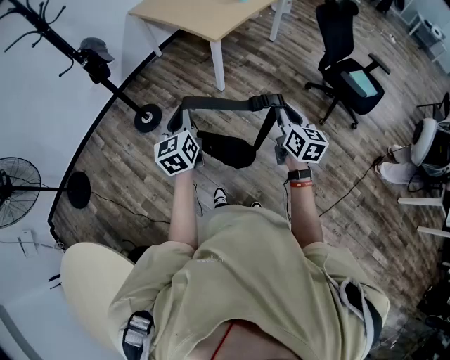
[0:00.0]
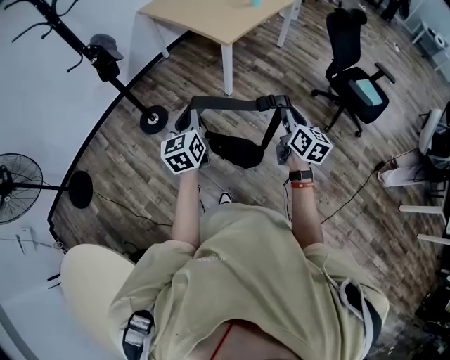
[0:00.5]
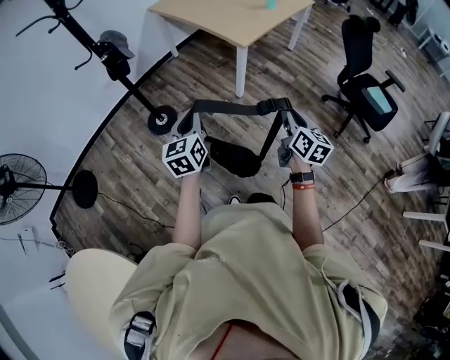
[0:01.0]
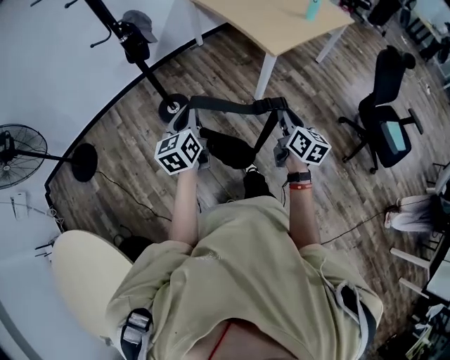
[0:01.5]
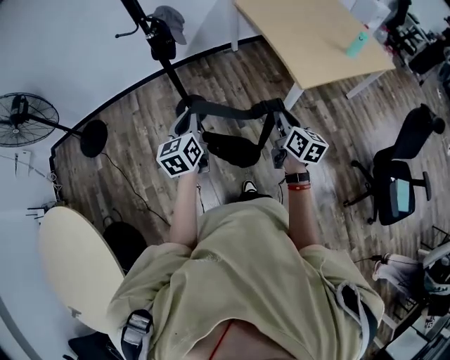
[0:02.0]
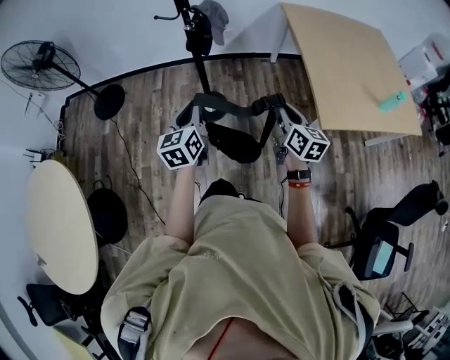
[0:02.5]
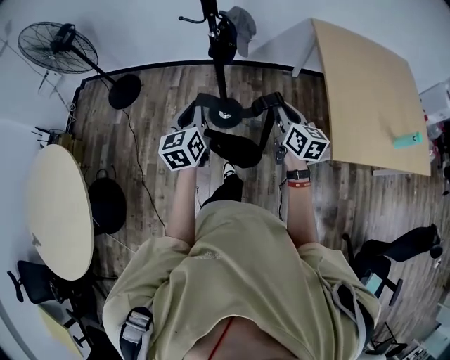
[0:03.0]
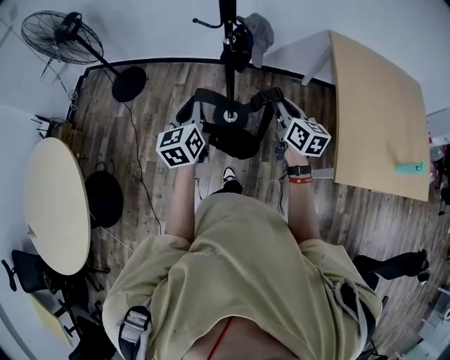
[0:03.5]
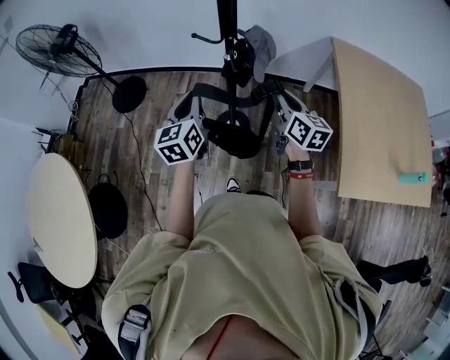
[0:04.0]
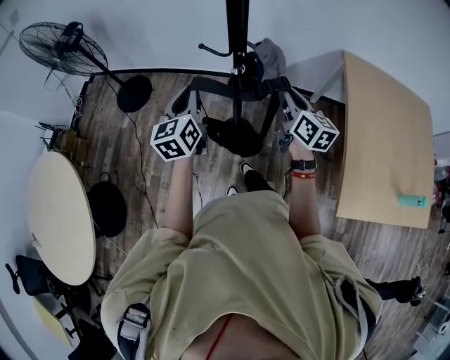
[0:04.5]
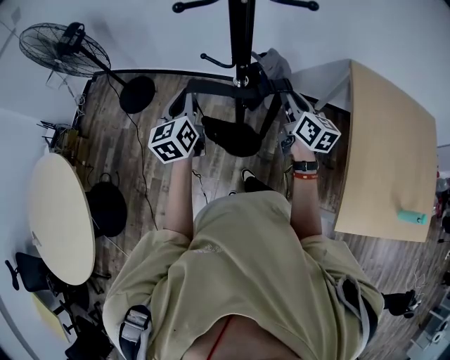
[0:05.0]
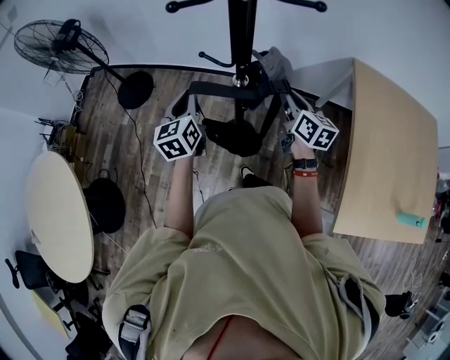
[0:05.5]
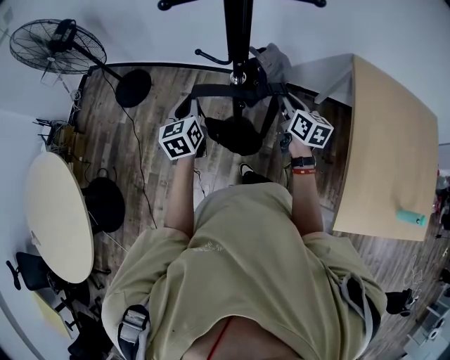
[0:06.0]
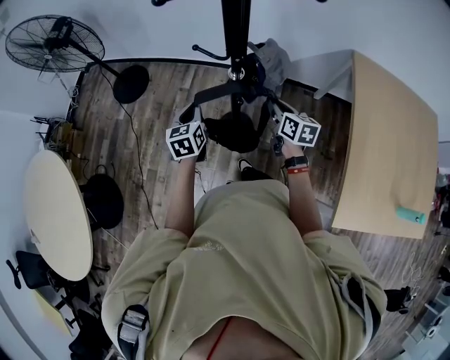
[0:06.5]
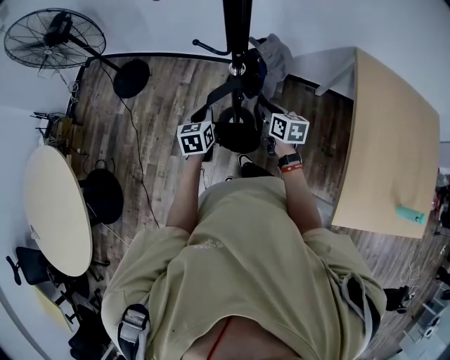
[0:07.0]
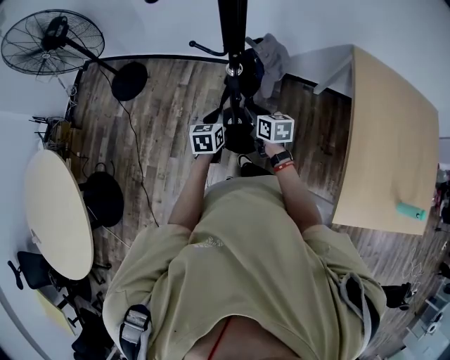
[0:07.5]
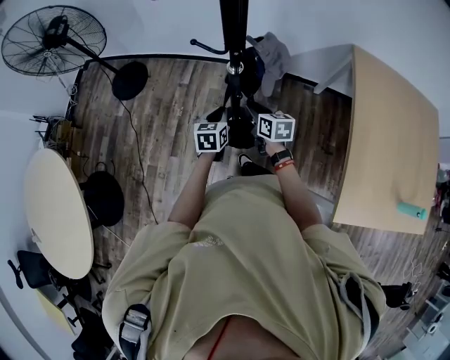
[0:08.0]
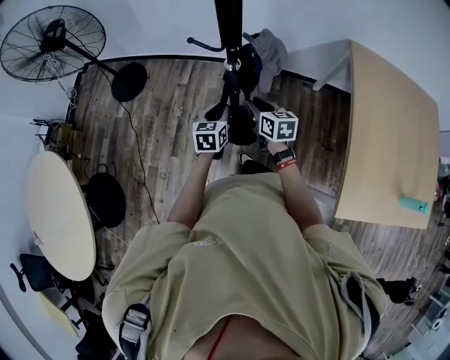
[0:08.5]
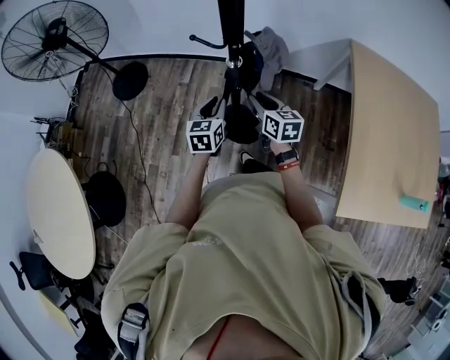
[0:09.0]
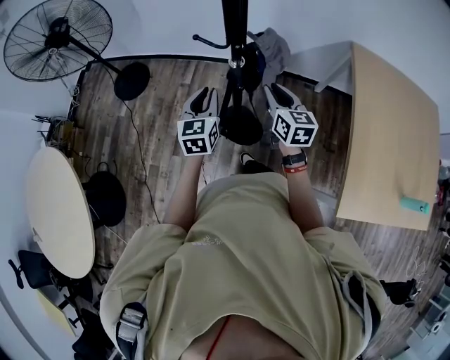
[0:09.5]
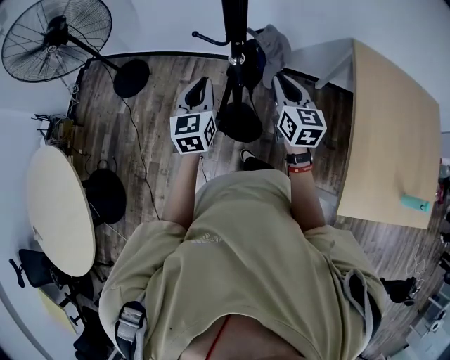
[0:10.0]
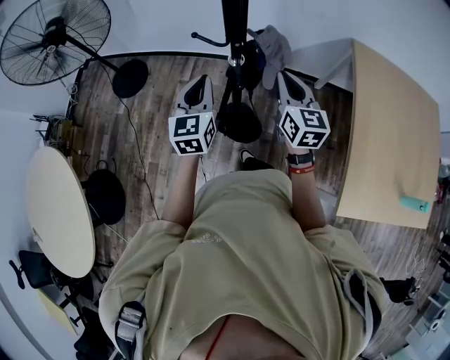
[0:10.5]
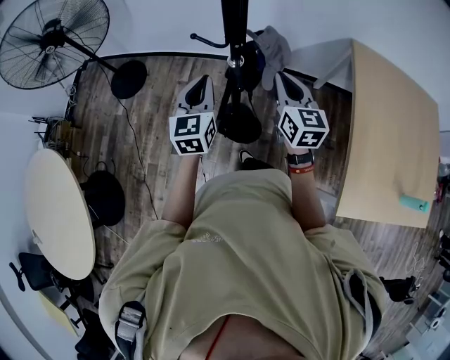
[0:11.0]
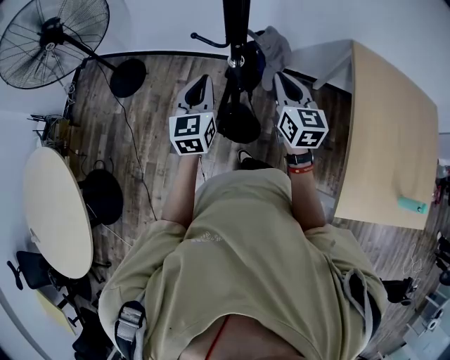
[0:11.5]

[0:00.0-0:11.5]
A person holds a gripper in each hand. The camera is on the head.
0:00.0 to 0:02.0: The left gripper shifts by about 35 cm, and rotates approximately 30 degrees; the right gripper shifts by approximately 50 cm, and swivels about 30 degrees.
0:02.0 to 0:04.0: The left gripper moves roughly 35 cm, and swivels some 30 degrees. Meanwhile the right gripper moves some 50 cm, and swivels some 30 degrees.
0:04.0 to 0:06.0: The grippers both shift forward and downward by approximately 20 cm.
0:06.0 to 0:07.5: The right gripper moves downward and to the left, roughly 15 cm. Meanwhile the left gripper goes about 15 cm downward and to the right, and rotates about 20 degrees.
0:07.5 to 0:09.5: Both grippers travel together upward, approximately 15 cm. The right gripper changes its angle by some 20 degrees. Meanwhile the left gripper swivels about 20 degrees.
0:09.5 to 0:11.5: The two grippers go some 5 cm upward. The right gripper closes.

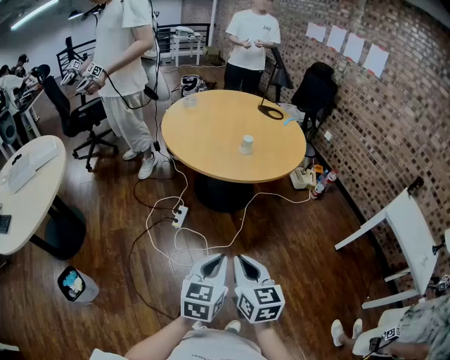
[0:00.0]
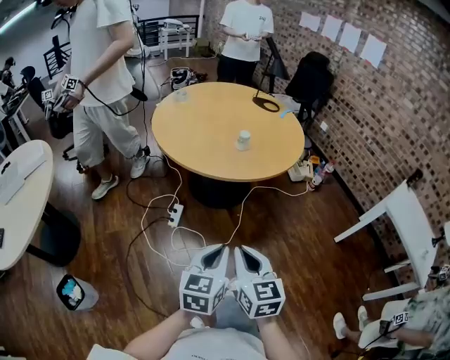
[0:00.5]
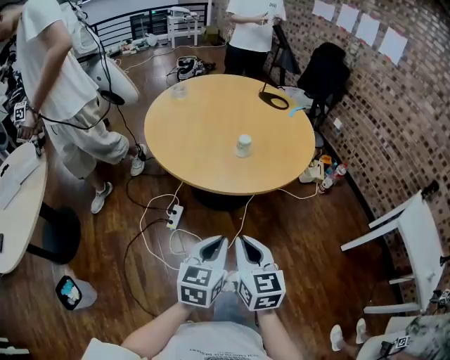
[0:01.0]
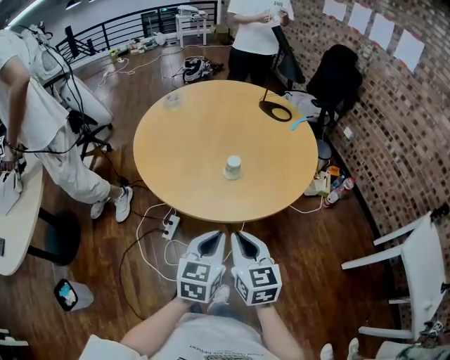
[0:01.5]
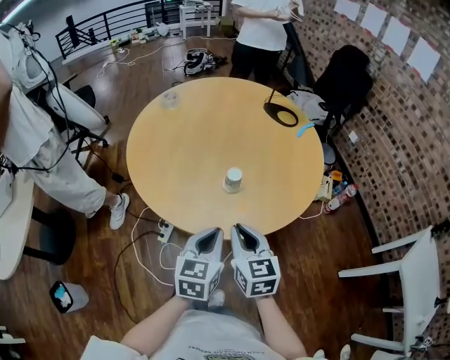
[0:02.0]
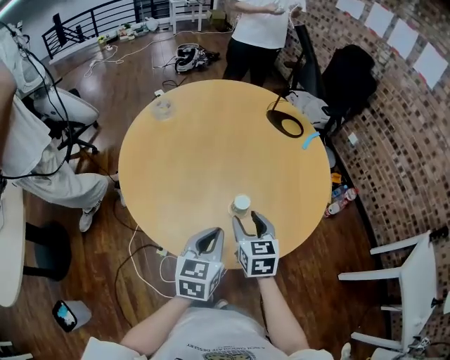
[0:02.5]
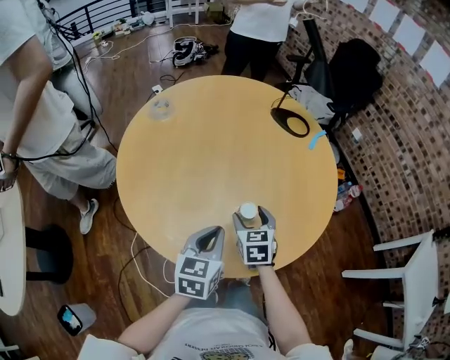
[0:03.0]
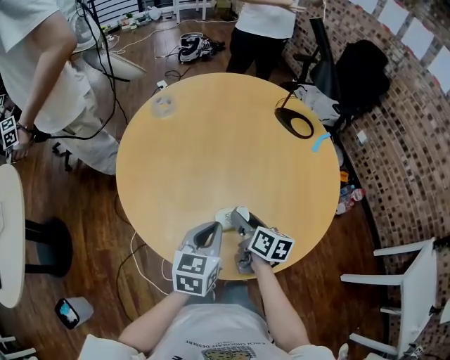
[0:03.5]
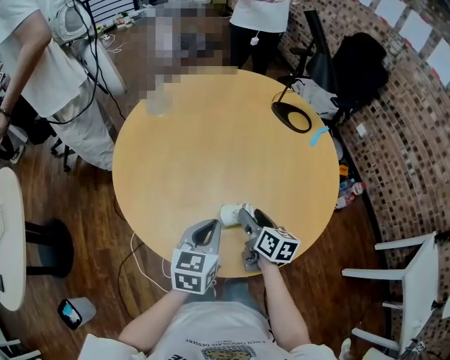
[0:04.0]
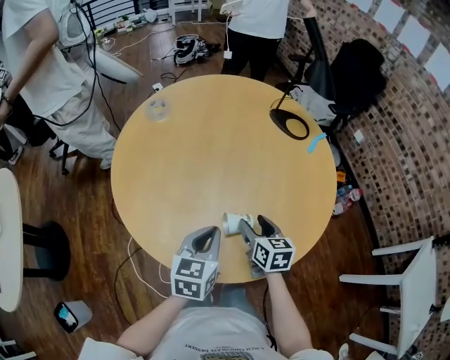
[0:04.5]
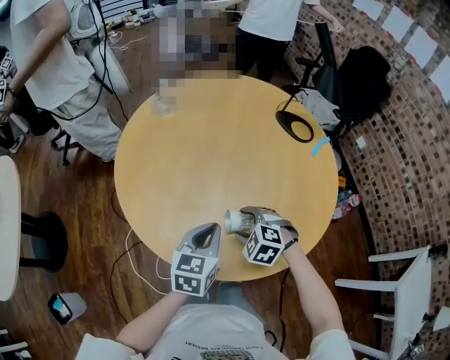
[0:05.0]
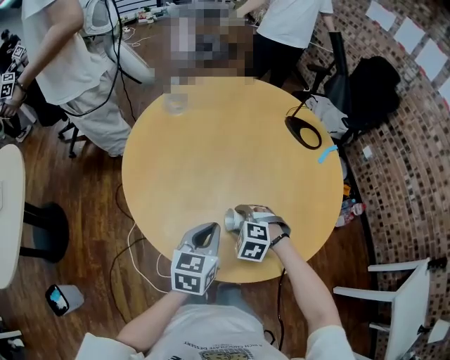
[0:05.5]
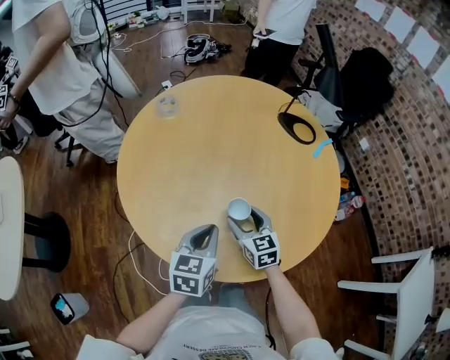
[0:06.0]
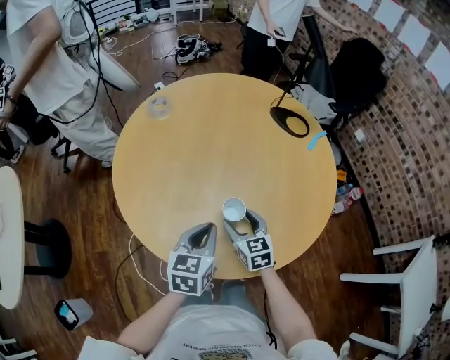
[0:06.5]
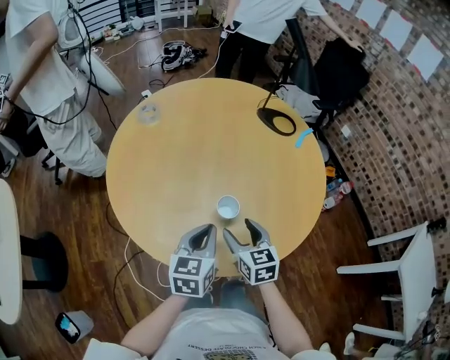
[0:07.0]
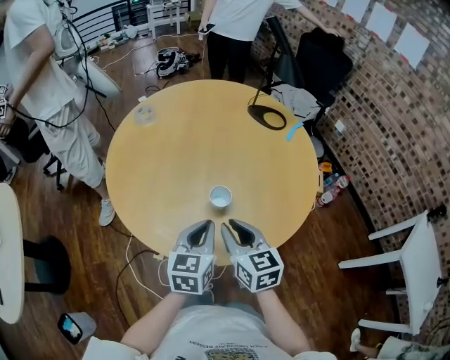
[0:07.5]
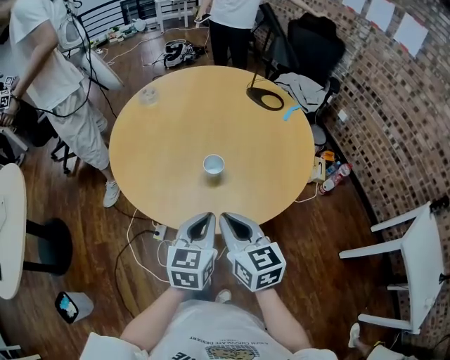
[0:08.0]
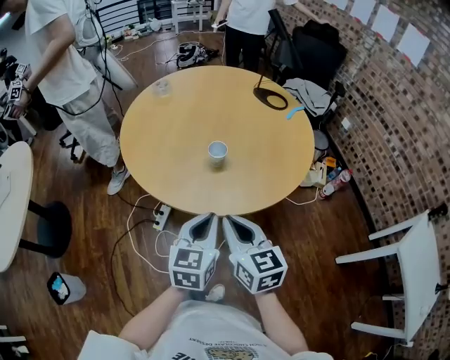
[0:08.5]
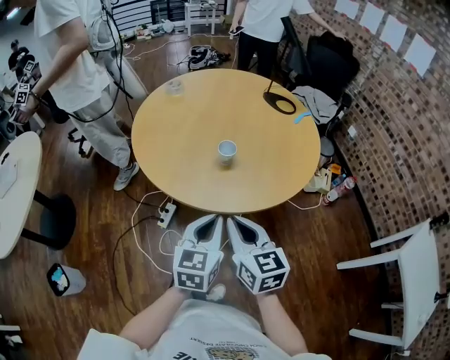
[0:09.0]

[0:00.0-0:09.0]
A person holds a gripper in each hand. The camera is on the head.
0:00.0 to 0:02.0: Both grippers are carried forward, roughly 50 cm.
0:02.0 to 0:04.5: The right gripper moves forward and downward, approximately 25 cm, and opens, while the left gripper is displaced forward by approximately 20 cm.
0:04.5 to 0:07.0: The right gripper travels backward by roughly 5 cm.
0:07.0 to 0:09.0: The left gripper moves backward, roughly 25 cm, while the right gripper is displaced backward and upward by approximately 30 cm, and closes.

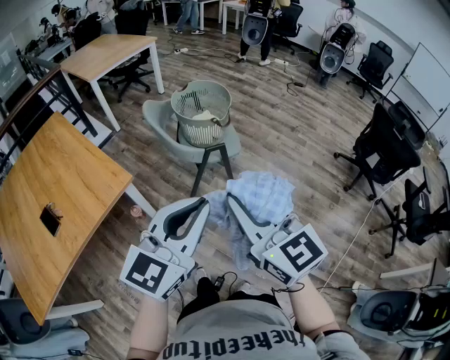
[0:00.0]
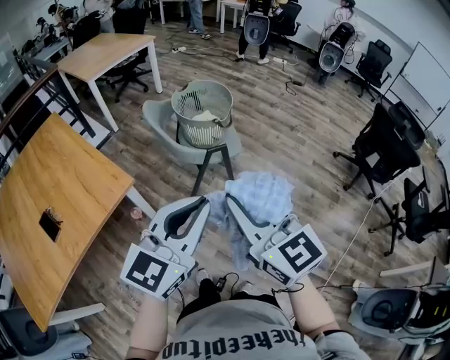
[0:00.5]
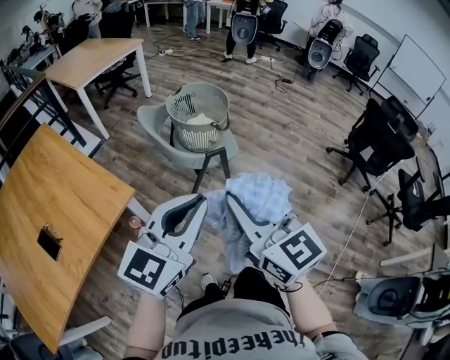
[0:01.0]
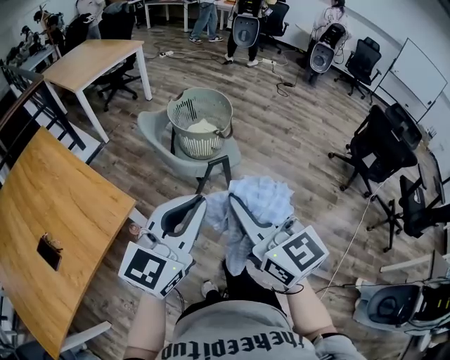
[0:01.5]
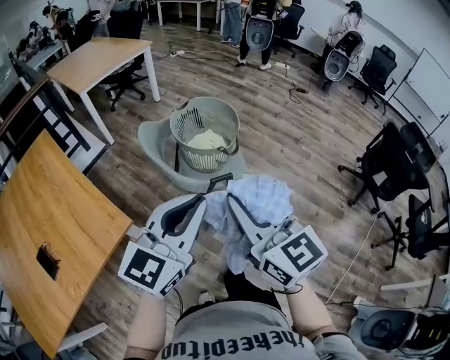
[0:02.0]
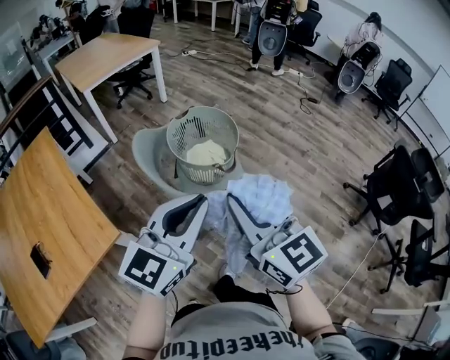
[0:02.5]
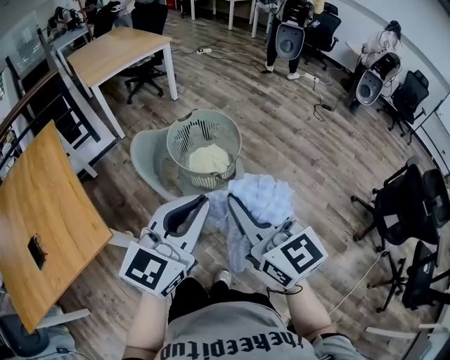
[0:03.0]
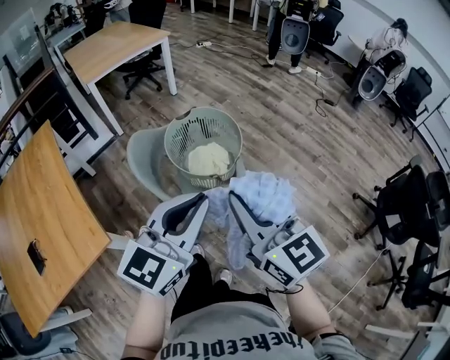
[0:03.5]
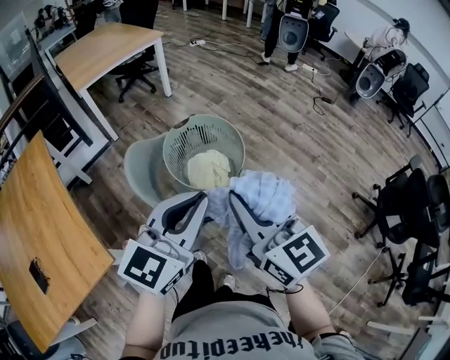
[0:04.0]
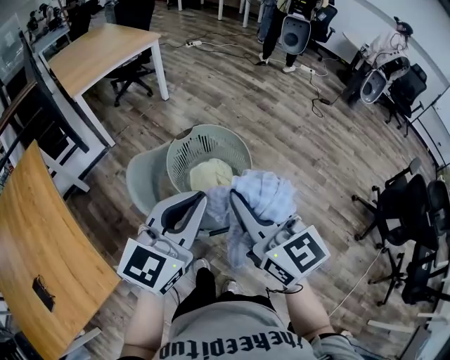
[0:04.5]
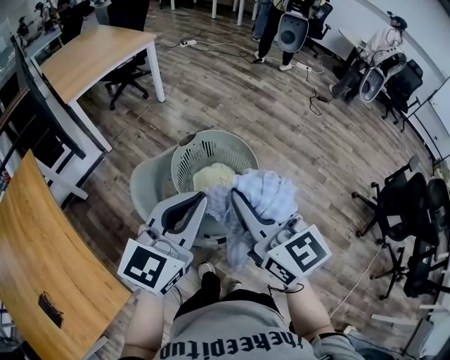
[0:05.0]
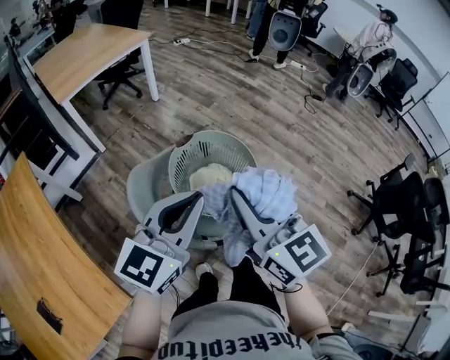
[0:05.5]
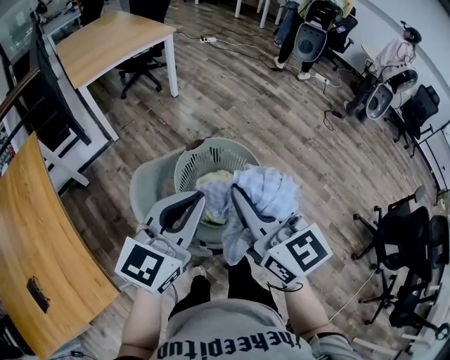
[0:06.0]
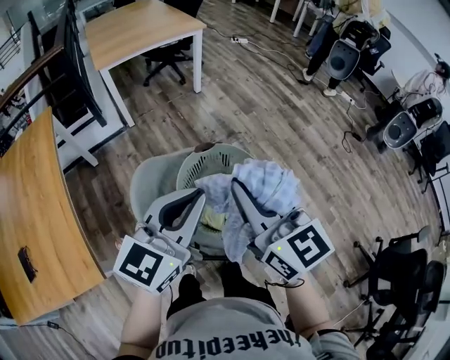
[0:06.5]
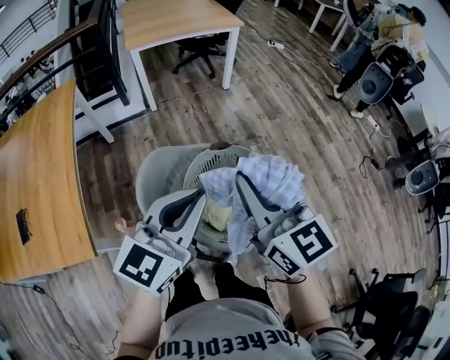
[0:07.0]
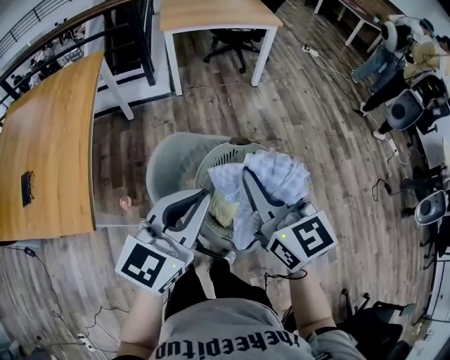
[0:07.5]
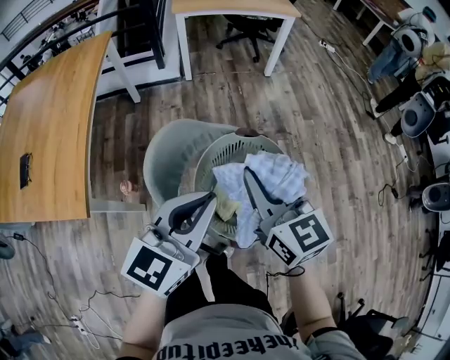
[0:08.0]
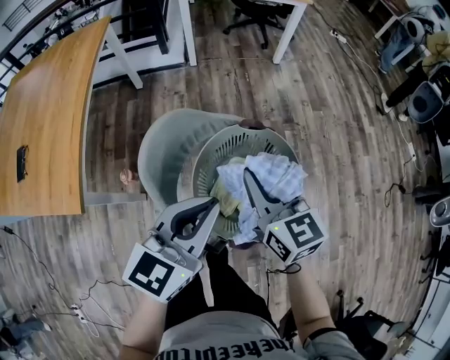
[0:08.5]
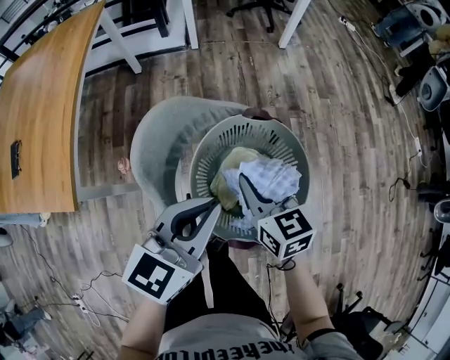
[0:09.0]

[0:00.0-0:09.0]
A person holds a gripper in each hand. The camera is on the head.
0:00.0 to 0:02.0: Both grippers move forward, approximately 20 cm.
0:02.0 to 0:04.5: The two grippers go roughly 25 cm forward.
0:04.5 to 0:07.0: The left gripper ends up roughly 10 cm from where it was, and rotates some 30 degrees. Meanwhile the right gripper moves approximately 15 cm, and turns by about 30 degrees.
0:07.0 to 0:09.0: The right gripper is displaced downward by about 25 cm, and turns by about 30 degrees; the left gripper shifts about 15 cm downward, and changes its angle by about 20 degrees.
